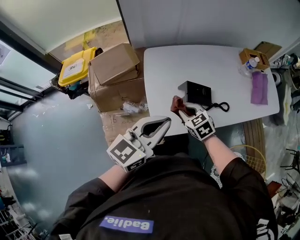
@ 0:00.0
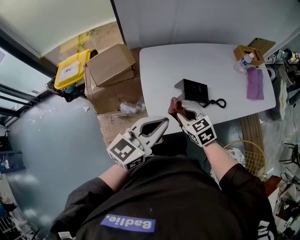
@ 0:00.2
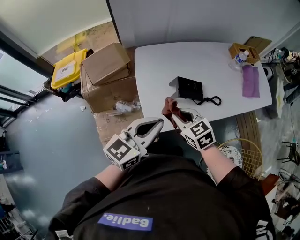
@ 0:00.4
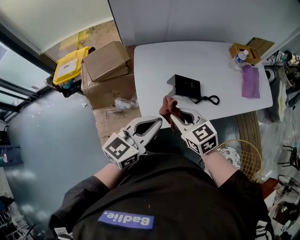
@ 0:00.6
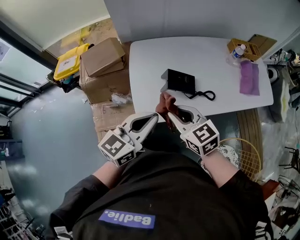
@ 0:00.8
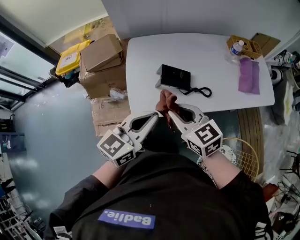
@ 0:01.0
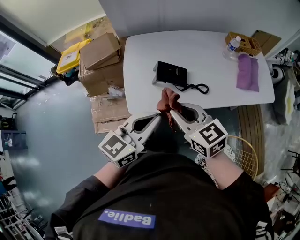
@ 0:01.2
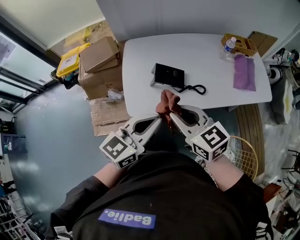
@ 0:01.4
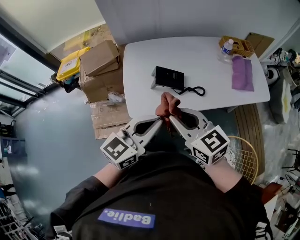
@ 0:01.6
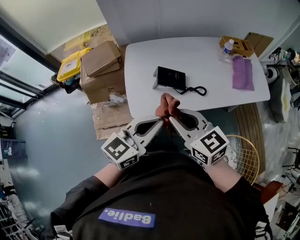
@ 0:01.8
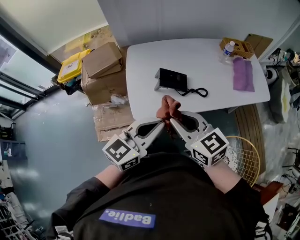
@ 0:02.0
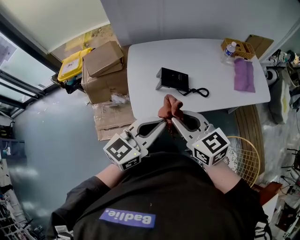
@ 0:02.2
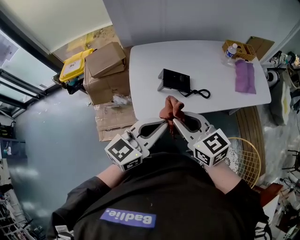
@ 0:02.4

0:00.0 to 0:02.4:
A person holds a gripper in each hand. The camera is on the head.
0:00.0 to 0:01.2: The left gripper shifts approximately 15 cm to the right and backward, while the right gripper shifts roughly 25 cm upward, to the right and backward, and changes its angle by some 30 degrees.
0:01.2 to 0:02.4: The right gripper moves roughly 5 cm.

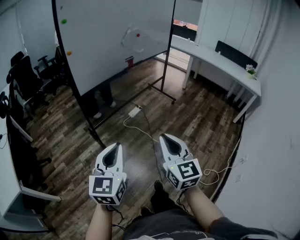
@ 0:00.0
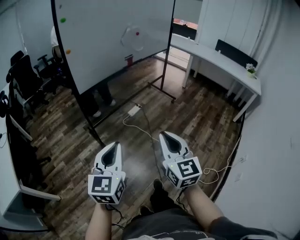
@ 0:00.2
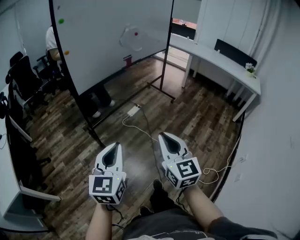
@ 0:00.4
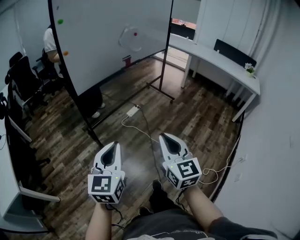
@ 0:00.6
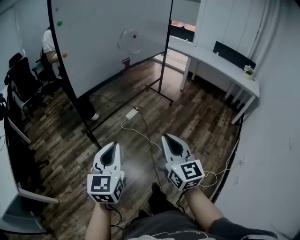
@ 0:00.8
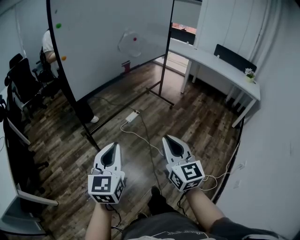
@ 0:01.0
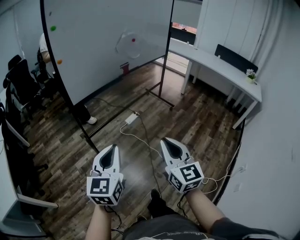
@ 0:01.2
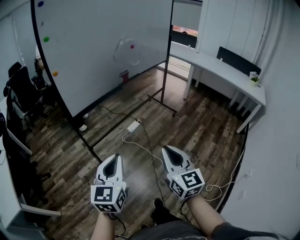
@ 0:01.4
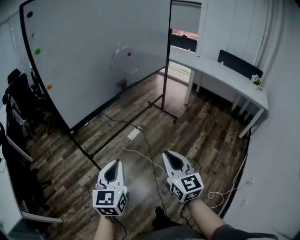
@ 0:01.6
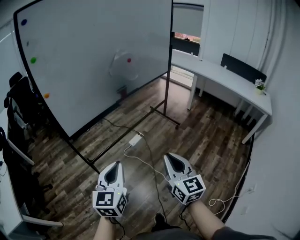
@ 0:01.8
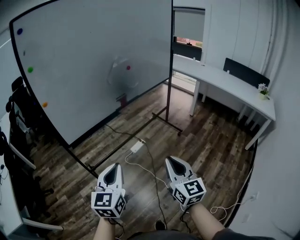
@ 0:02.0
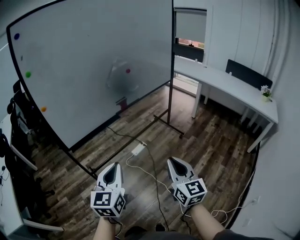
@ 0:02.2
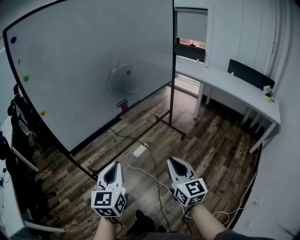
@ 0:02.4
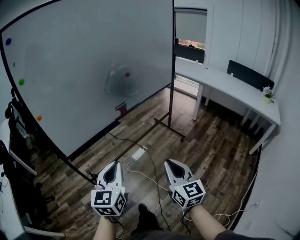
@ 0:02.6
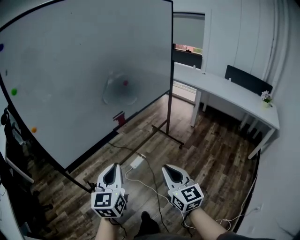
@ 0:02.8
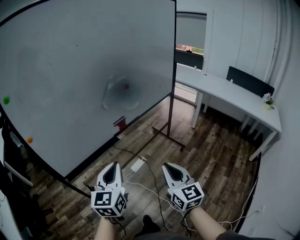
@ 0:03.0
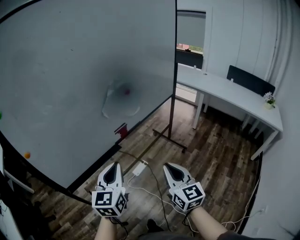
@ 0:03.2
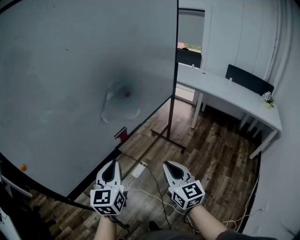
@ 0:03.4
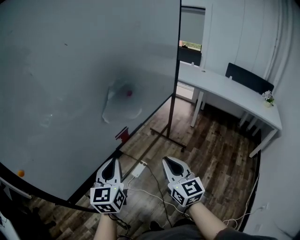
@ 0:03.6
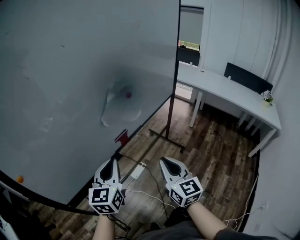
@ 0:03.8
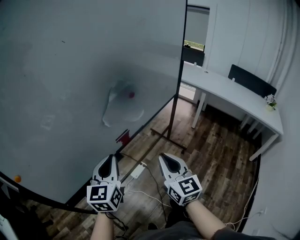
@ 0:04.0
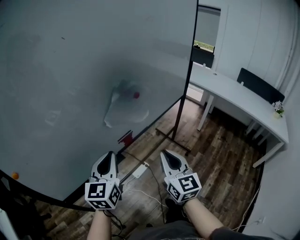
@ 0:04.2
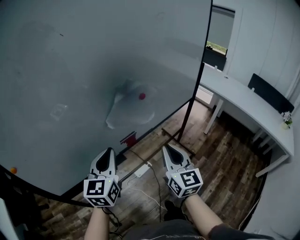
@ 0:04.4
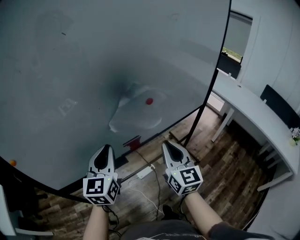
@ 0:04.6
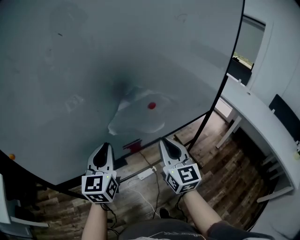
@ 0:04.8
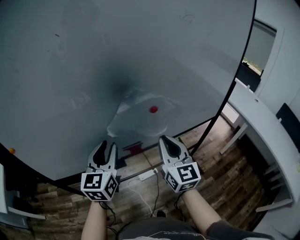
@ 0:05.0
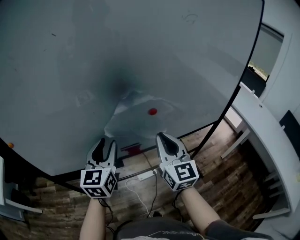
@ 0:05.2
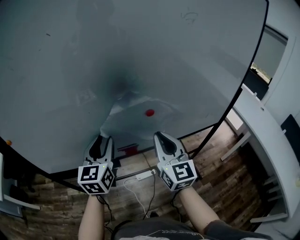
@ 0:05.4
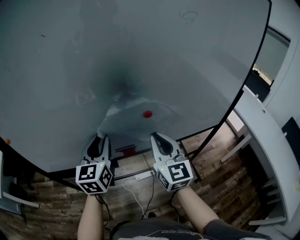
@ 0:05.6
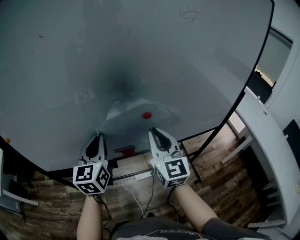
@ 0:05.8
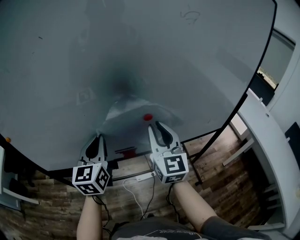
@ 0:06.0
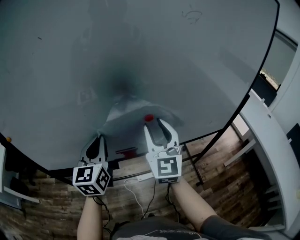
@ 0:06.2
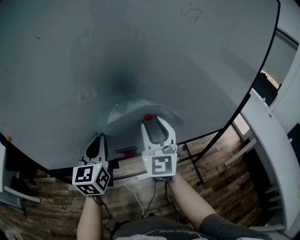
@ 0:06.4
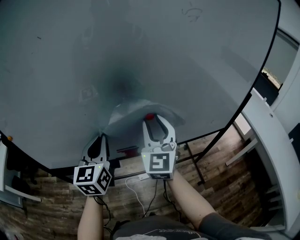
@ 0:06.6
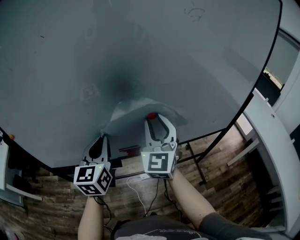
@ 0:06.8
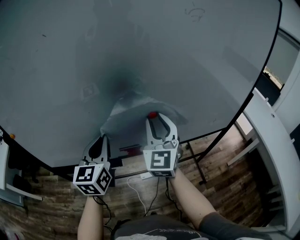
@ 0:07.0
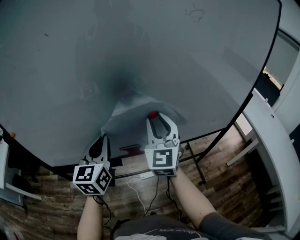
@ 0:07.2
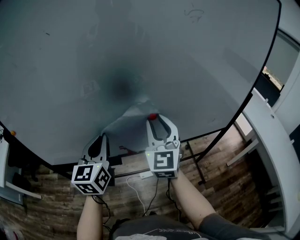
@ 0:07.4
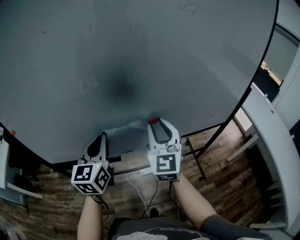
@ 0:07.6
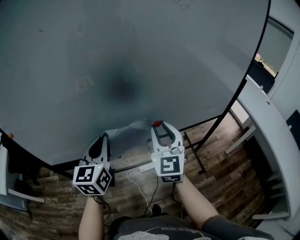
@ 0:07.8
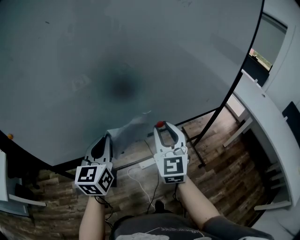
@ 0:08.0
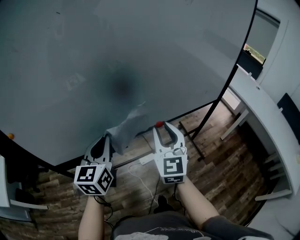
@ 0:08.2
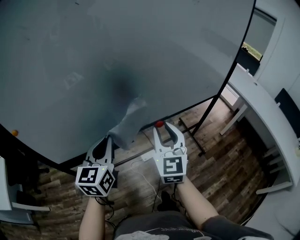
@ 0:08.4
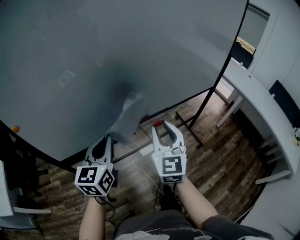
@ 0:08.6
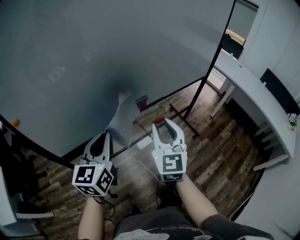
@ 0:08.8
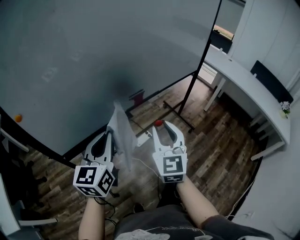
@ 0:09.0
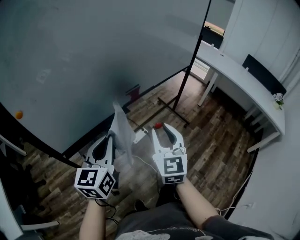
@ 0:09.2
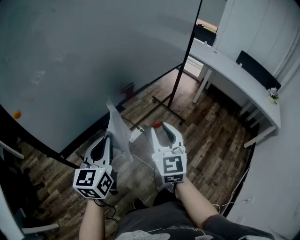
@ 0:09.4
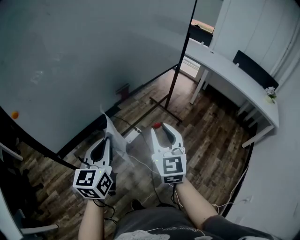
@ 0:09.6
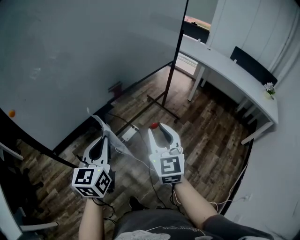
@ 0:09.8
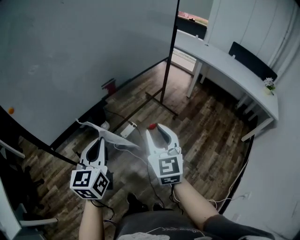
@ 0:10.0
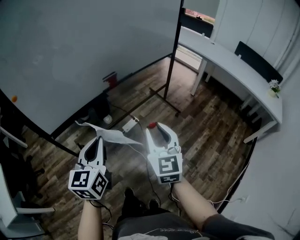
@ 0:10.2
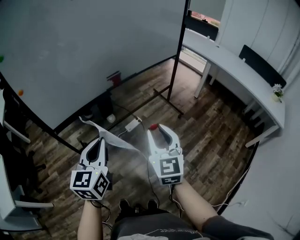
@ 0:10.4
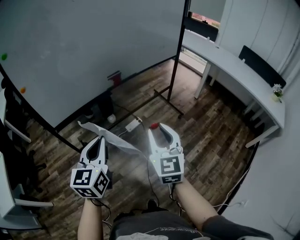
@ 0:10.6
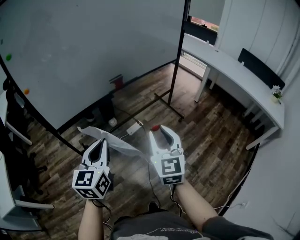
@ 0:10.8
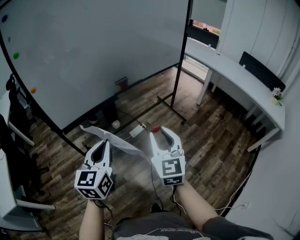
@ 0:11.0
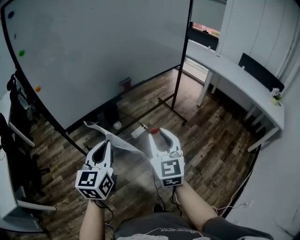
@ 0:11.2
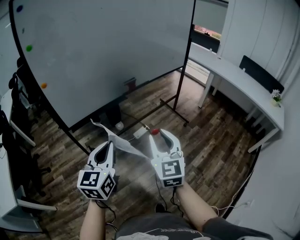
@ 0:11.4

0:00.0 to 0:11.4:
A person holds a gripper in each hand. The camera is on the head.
0:00.0 to 0:01.4: The right gripper moves forward and to the right, approximately 15 cm, while the left gripper heads forward, covering approximately 15 cm.
0:01.4 to 0:02.8: The two grippers go roughly 30 cm forward.
0:02.8 to 0:04.2: Both grippers travel together forward, some 30 cm.
0:04.2 to 0:05.6: The left gripper changes place by some 10 cm, rotates roughly 30 degrees, and opens up; the right gripper shifts by roughly 20 cm, and rotates some 30 degrees.
0:05.6 to 0:07.2: The right gripper moves forward, roughly 5 cm, and opens. The left gripper closes its fingers.
0:07.2 to 0:08.6: The grippers both shift backward, to the left and downward by about 20 cm.
0:08.6 to 0:10.0: Both grippers travel together backward and to the right, approximately 25 cm.
0:10.0 to 0:11.4: The left gripper moves backward, roughly 10 cm. The right gripper travels backward and to the left by approximately 10 cm.

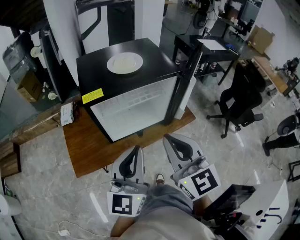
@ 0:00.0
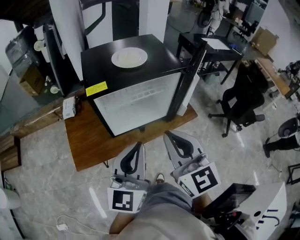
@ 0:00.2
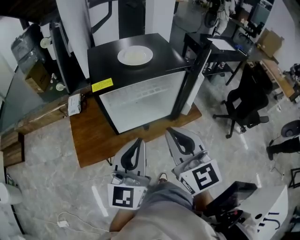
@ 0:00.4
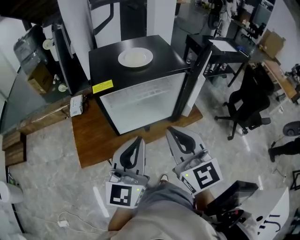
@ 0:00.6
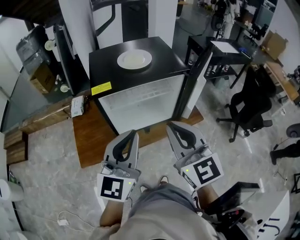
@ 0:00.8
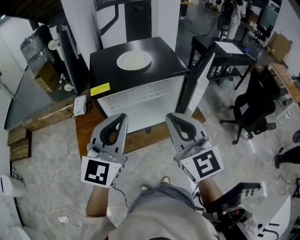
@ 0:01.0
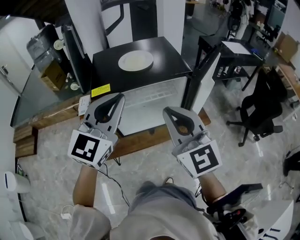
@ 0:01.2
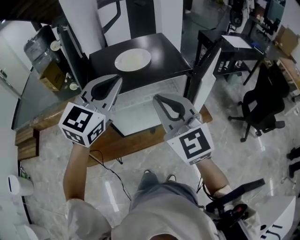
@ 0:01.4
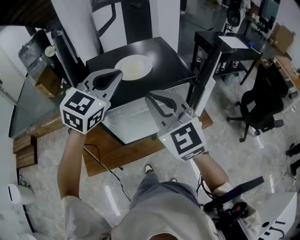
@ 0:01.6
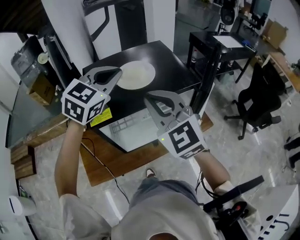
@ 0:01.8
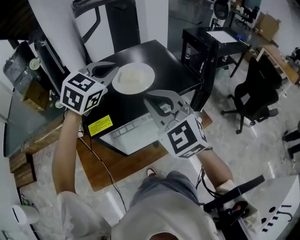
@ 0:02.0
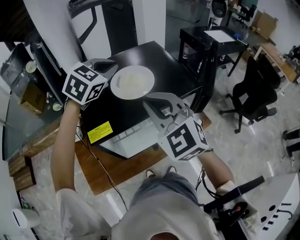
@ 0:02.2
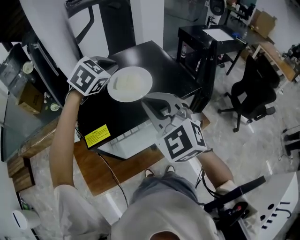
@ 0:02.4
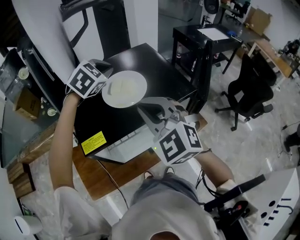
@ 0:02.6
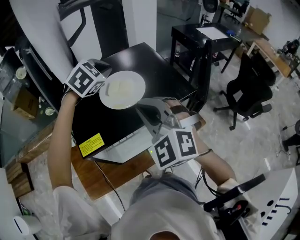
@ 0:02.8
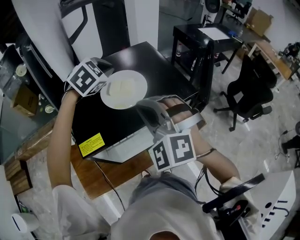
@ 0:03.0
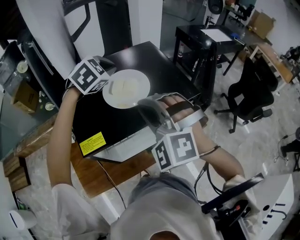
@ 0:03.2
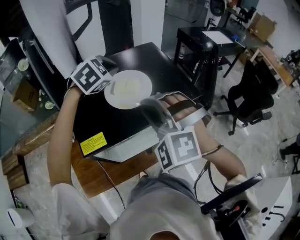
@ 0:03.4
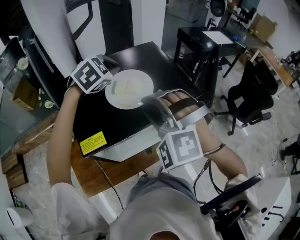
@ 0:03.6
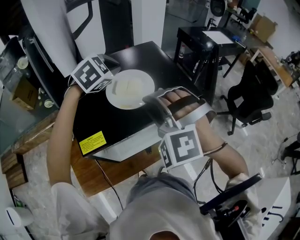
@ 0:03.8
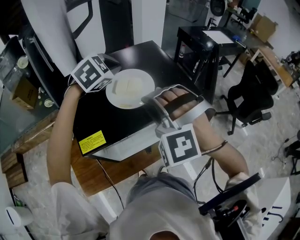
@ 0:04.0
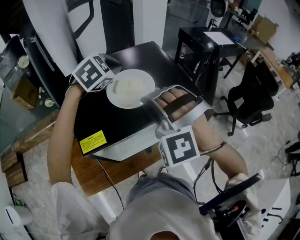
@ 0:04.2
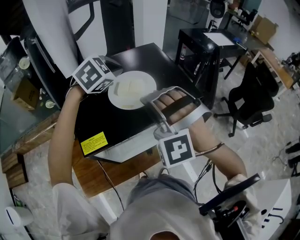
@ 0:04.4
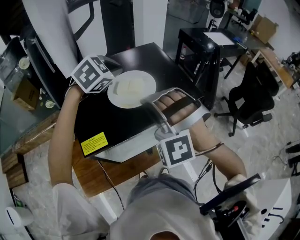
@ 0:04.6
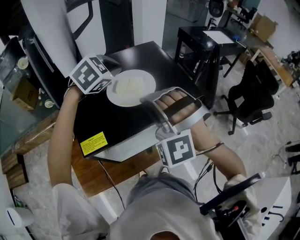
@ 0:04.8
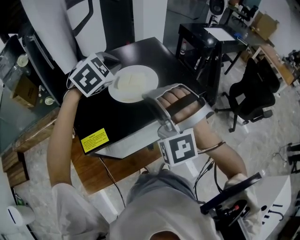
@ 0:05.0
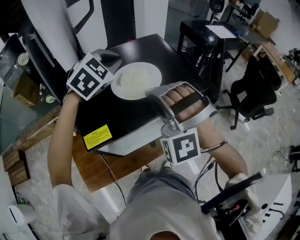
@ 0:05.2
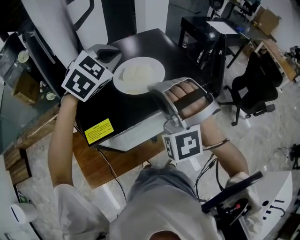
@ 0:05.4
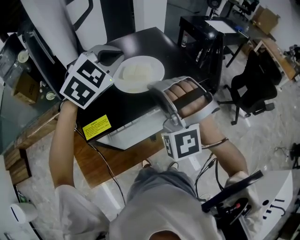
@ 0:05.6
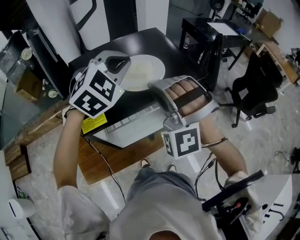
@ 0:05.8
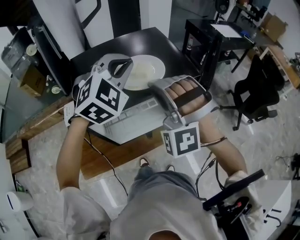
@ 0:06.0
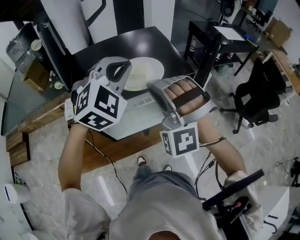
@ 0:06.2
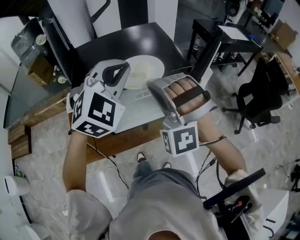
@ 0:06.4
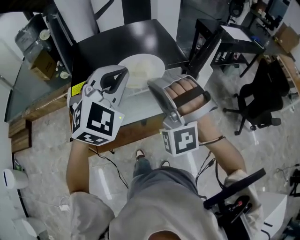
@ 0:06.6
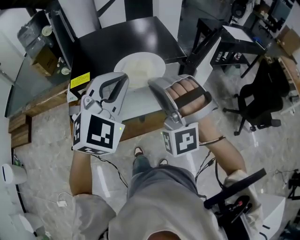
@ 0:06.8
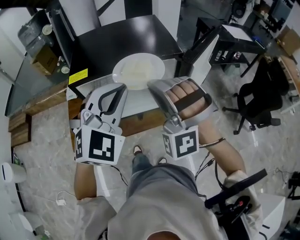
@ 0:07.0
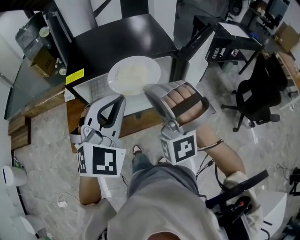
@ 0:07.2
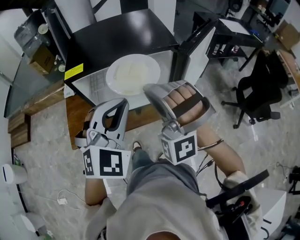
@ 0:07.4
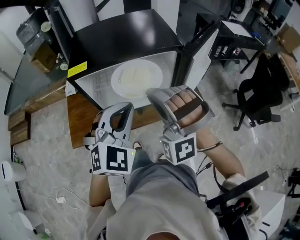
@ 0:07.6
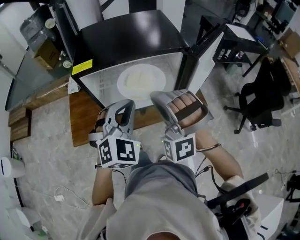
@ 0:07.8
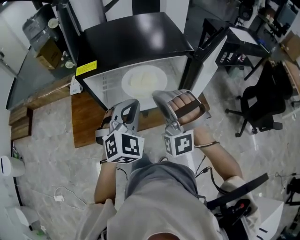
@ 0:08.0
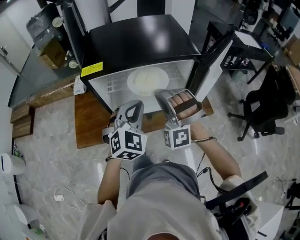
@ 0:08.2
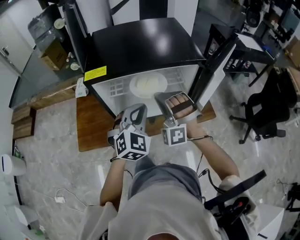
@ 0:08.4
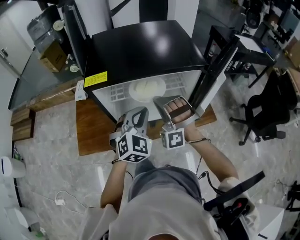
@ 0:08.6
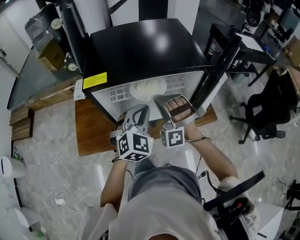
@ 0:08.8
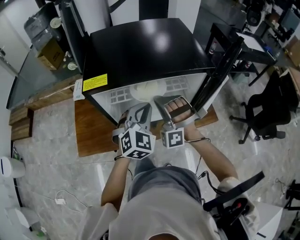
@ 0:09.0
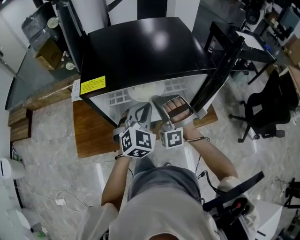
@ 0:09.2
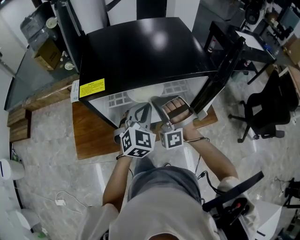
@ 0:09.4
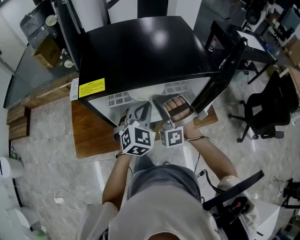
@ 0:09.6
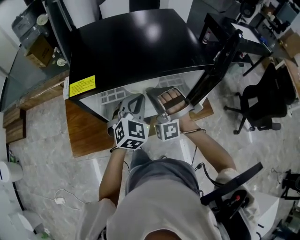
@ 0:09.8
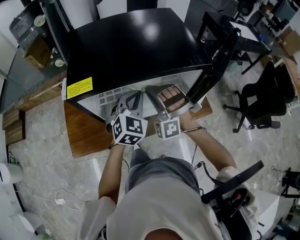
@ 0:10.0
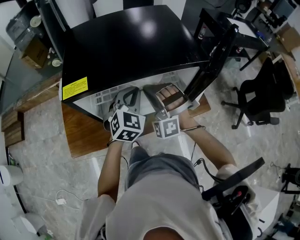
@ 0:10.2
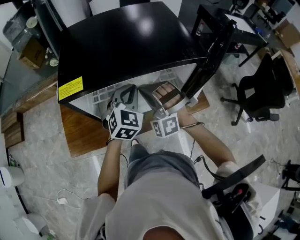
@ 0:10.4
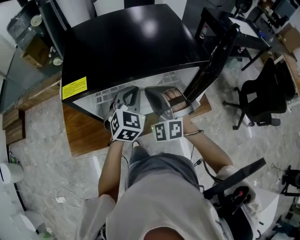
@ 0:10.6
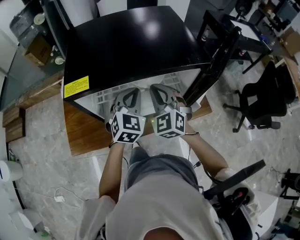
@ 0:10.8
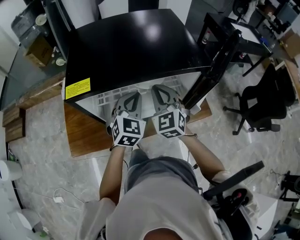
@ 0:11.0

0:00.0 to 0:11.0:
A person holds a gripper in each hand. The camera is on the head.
0:00.0 to 0:01.6: Both grippers travel together forward, roughly 25 cm. The left gripper rotates roughly 40 degrees.
0:01.6 to 0:03.2: The right gripper goes roughly 15 cm forward and downward, and twists about 40 degrees counterclockwise, seen from behind. Meanwhile the left gripper heads forward, covering about 25 cm, and tilts its fingers about 30 degrees downward.
0:04.8 to 0:06.2: The right gripper shifts about 10 cm backward and to the right. Meanwhile the left gripper heads backward and to the right, covering roughly 20 cm, and rotates roughly 30 degrees.
0:06.2 to 0:07.8: The grippers both shift backward and downward by about 25 cm.
0:07.8 to 0:09.4: The grippers both shift forward and downward by about 20 cm.
0:09.4 to 0:11.0: The right gripper shifts approximately 5 cm to the right, and rolls clockwise, seen from behind, by approximately 60 degrees.
